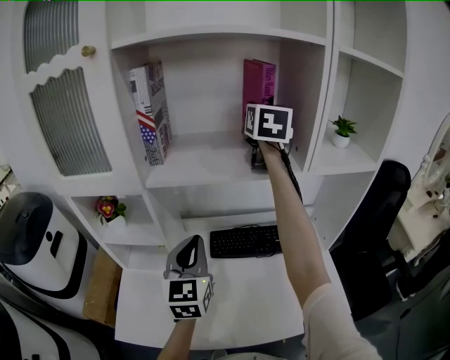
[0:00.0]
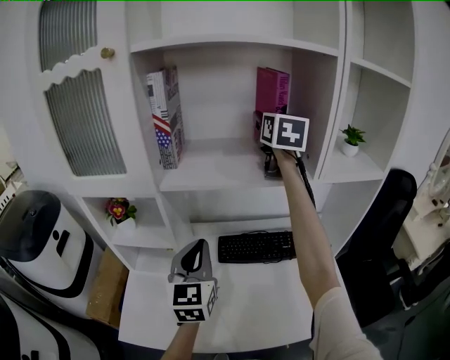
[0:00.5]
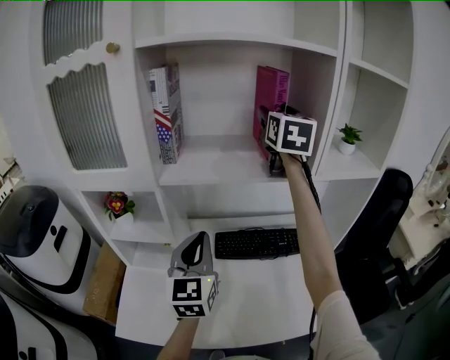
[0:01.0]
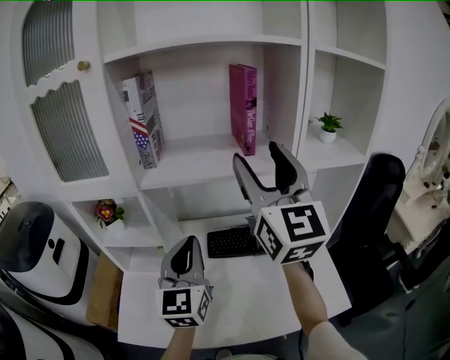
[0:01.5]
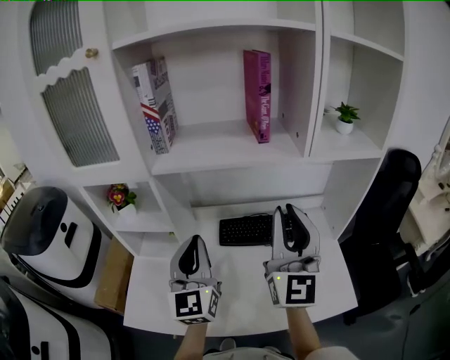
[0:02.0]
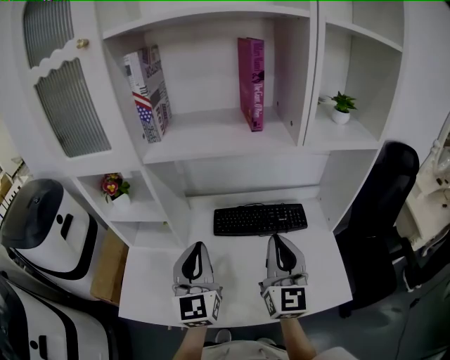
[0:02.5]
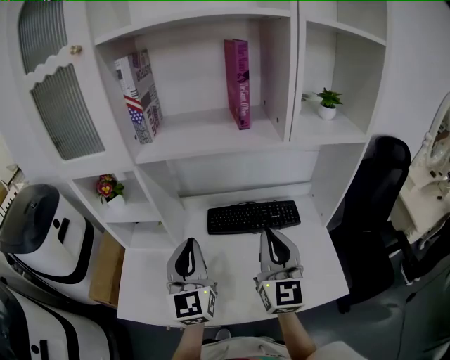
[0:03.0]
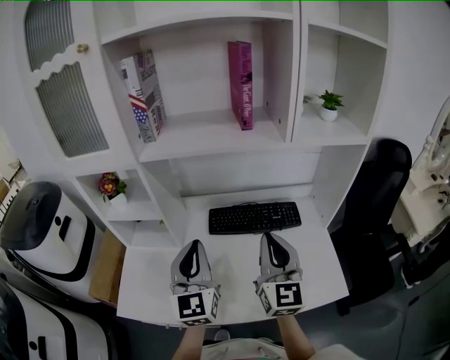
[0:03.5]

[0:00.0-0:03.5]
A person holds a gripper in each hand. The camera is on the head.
0:00.0 to 0:02.0: The right gripper moves backward and downward, roughly 35 cm, swivels about 30 degrees, and opens and closes again; the left gripper is displaced backward by approximately 5 cm.
0:02.0 to 0:03.5: The left gripper ends up some 5 cm from where it was. Meanwhile the right gripper goes roughly 10 cm downward.

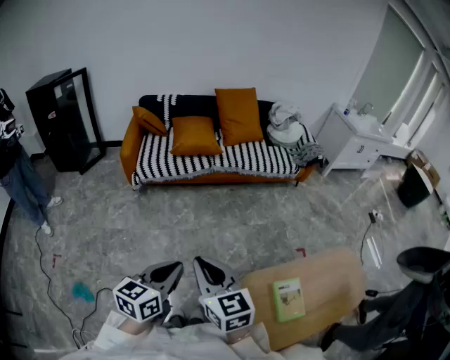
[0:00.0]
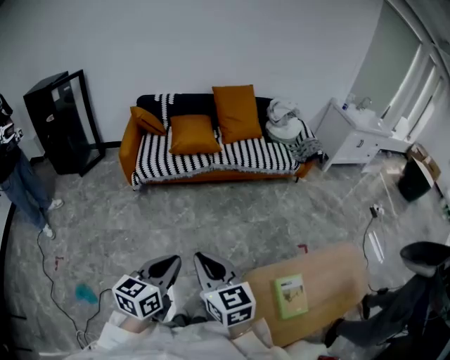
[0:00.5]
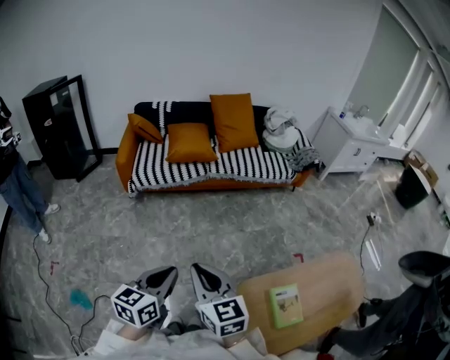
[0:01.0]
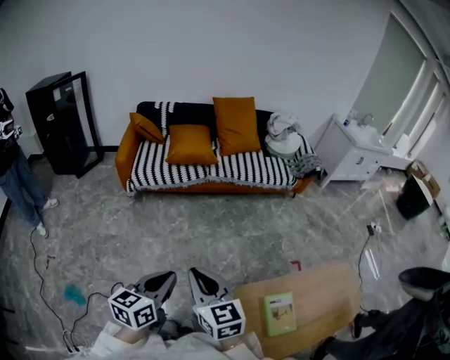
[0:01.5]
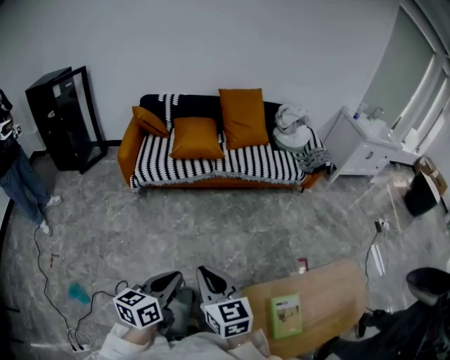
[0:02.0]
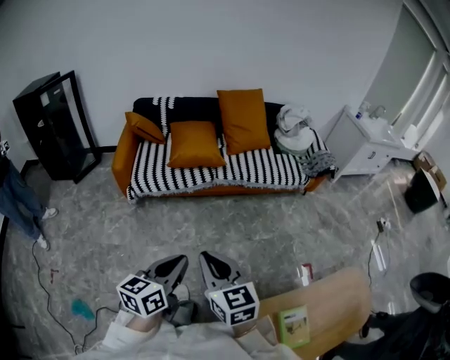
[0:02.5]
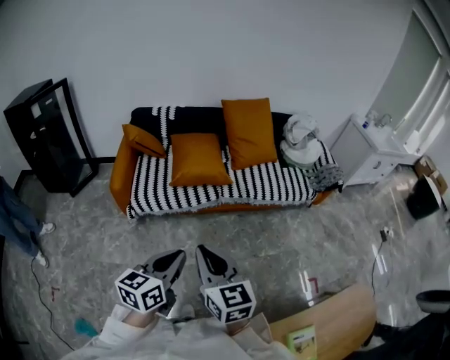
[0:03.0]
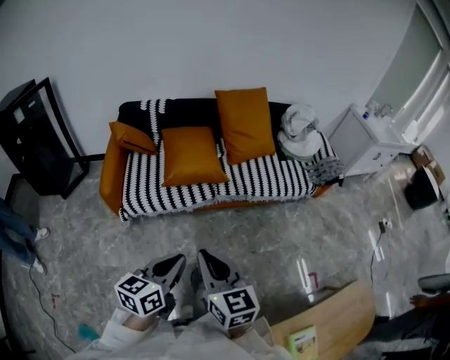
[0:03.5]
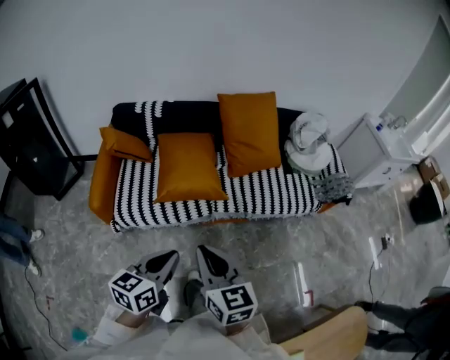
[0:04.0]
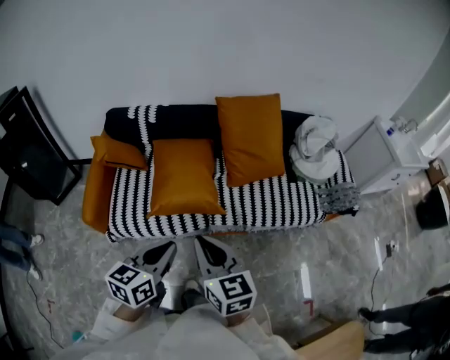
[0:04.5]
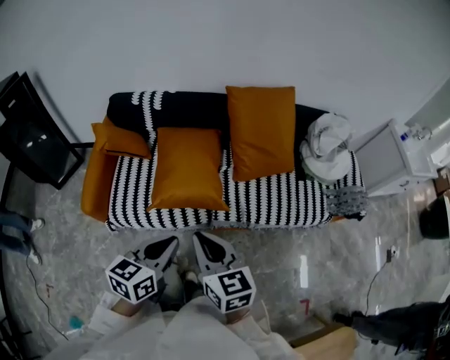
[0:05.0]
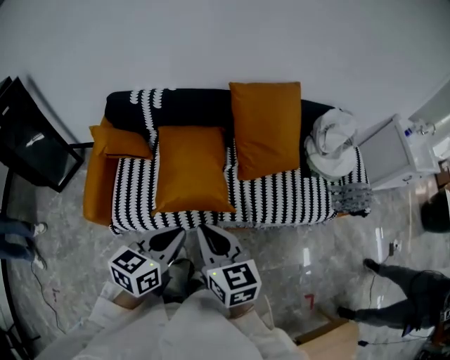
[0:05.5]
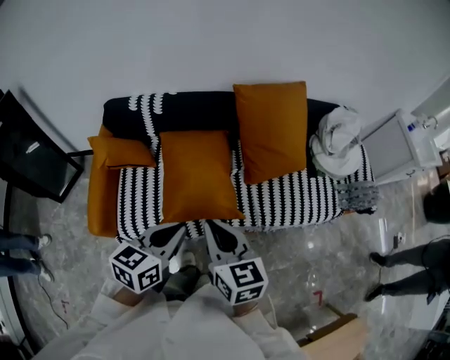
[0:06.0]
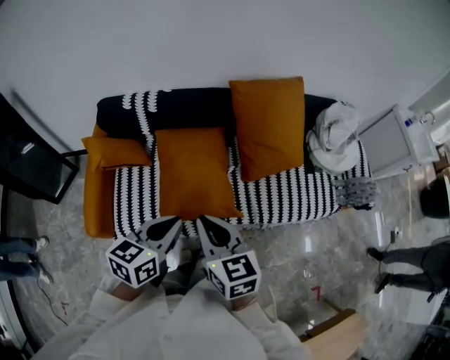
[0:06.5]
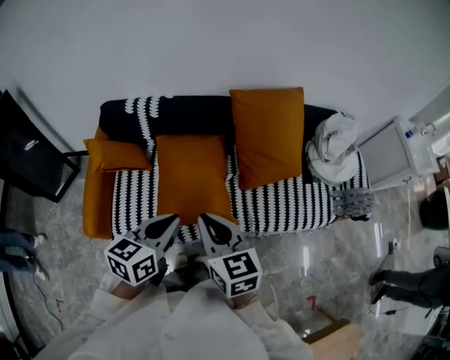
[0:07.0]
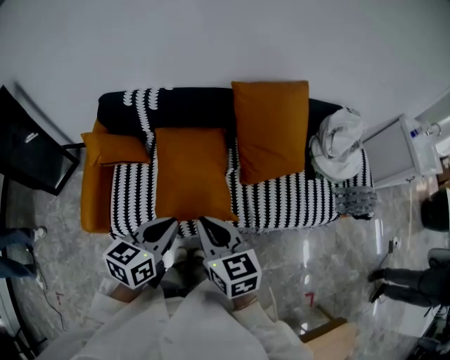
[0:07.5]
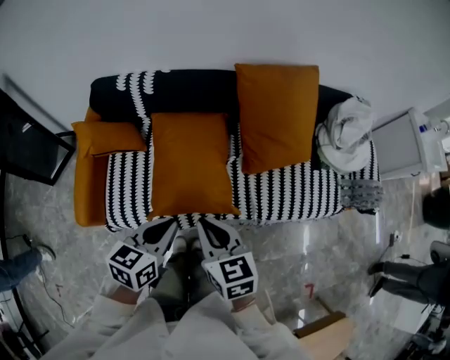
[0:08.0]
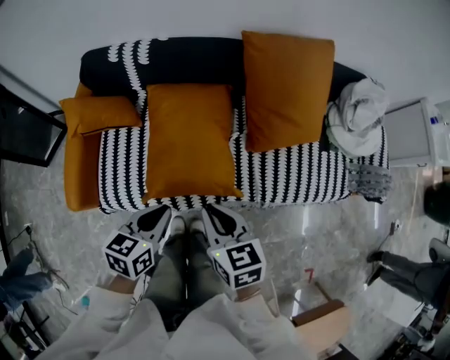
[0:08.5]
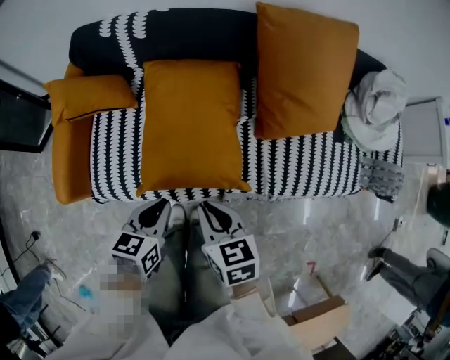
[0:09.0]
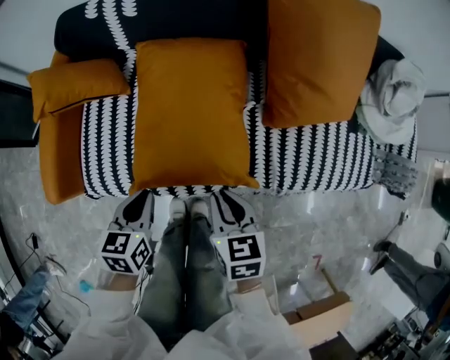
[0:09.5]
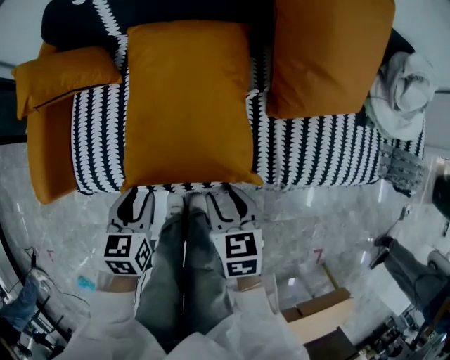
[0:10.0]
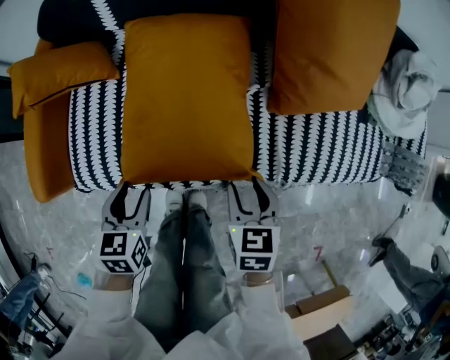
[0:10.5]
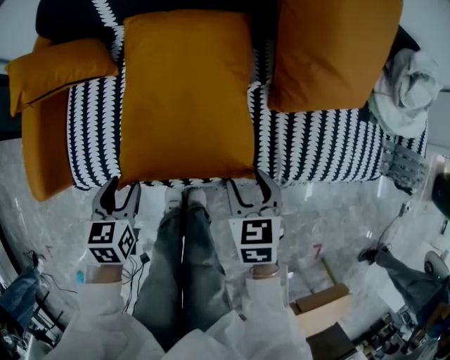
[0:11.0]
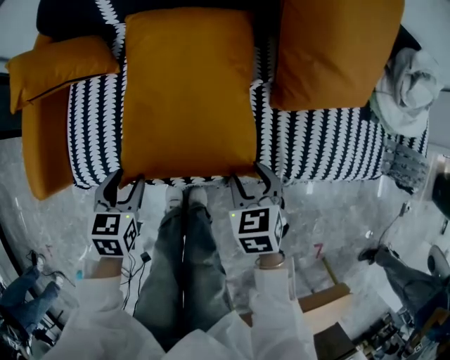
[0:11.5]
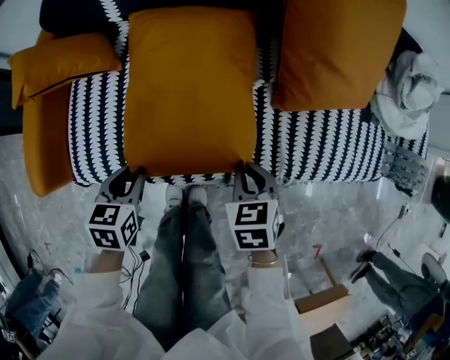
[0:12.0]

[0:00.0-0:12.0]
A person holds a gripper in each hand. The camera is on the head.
0:00.0 to 0:02.0: The left gripper is displaced forward by about 5 cm. The right gripper heads forward and downward, covering about 10 cm.
0:02.0 to 0:04.0: The two grippers travel together, forward, approximately 50 cm.
0:04.0 to 0:06.0: Both grippers move forward, about 30 cm.
0:06.0 to 0:08.0: Both grippers travel together downward, about 5 cm.
0:08.0 to 0:10.0: The grippers both shift downward by about 30 cm. The left gripper rotates about 30 degrees, and opens, while the right gripper changes its angle by approximately 20 degrees, and opens up.
0:10.0 to 0:12.0: The right gripper ends up roughly 5 cm from where it was, and closes up.

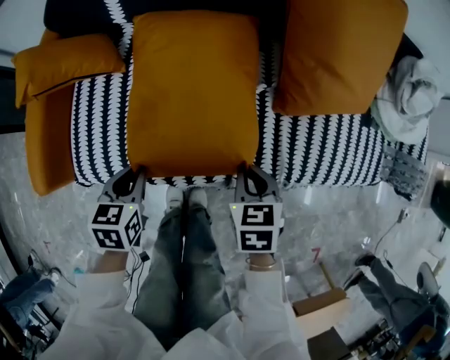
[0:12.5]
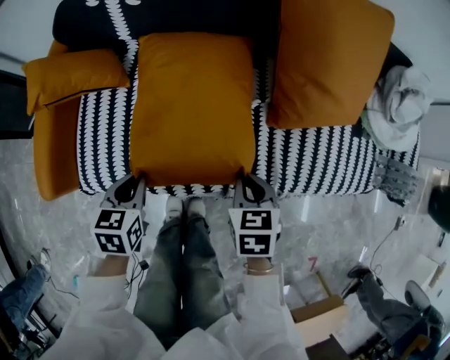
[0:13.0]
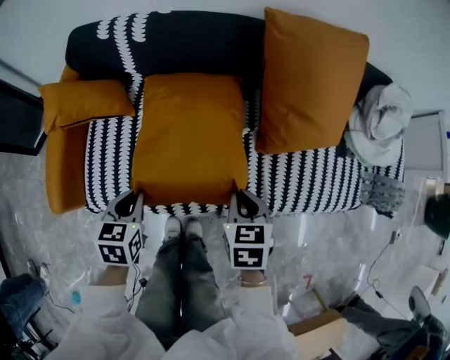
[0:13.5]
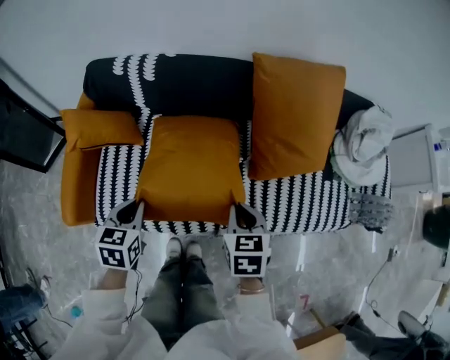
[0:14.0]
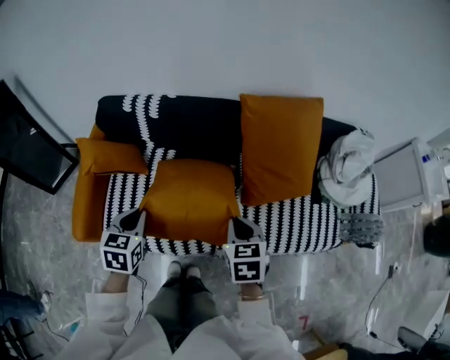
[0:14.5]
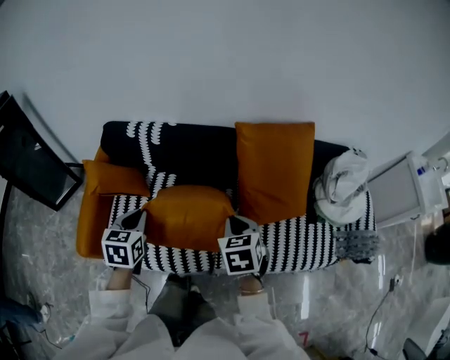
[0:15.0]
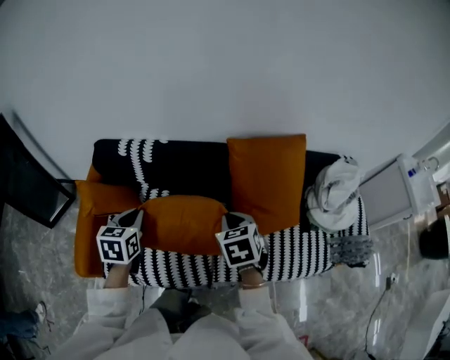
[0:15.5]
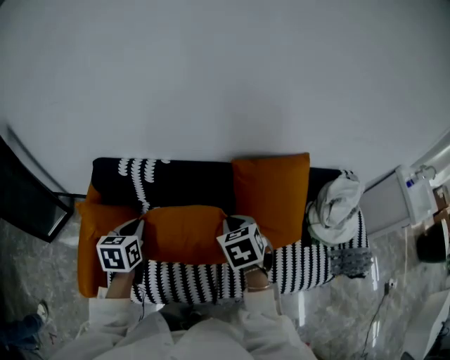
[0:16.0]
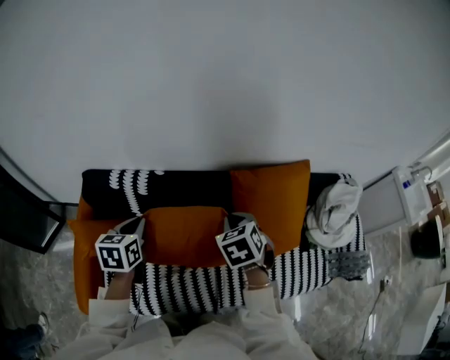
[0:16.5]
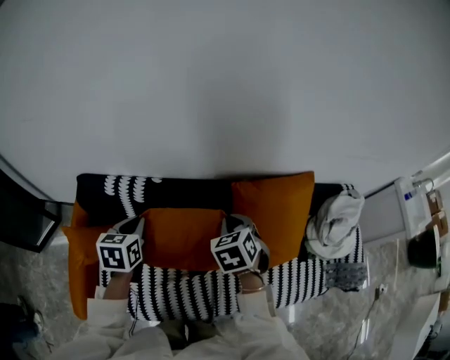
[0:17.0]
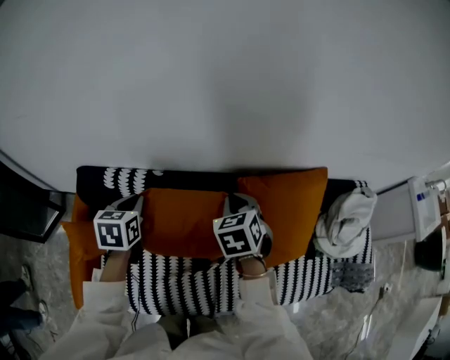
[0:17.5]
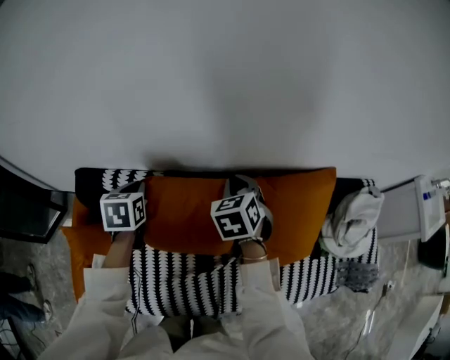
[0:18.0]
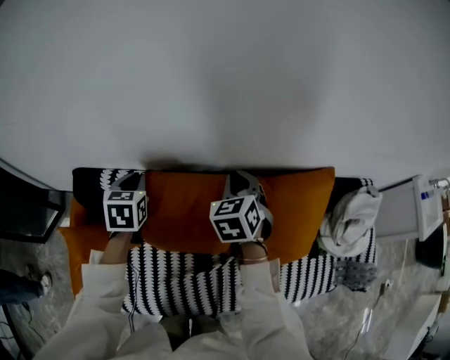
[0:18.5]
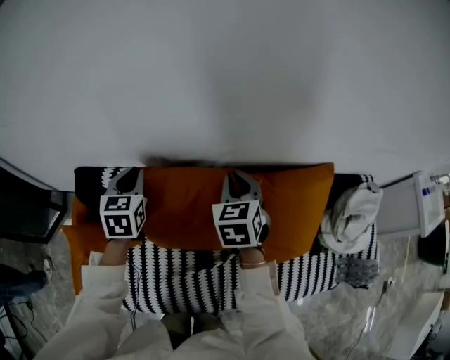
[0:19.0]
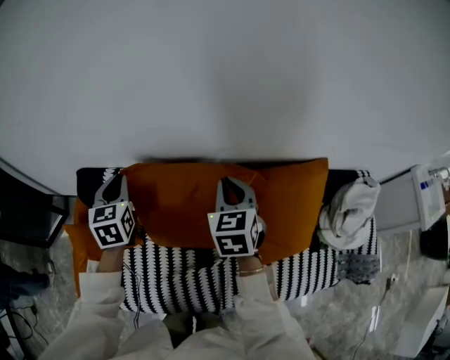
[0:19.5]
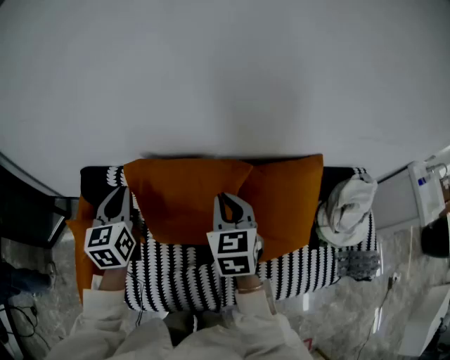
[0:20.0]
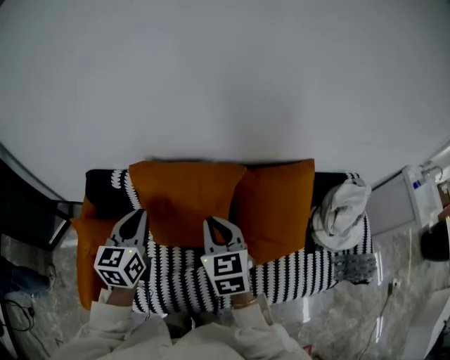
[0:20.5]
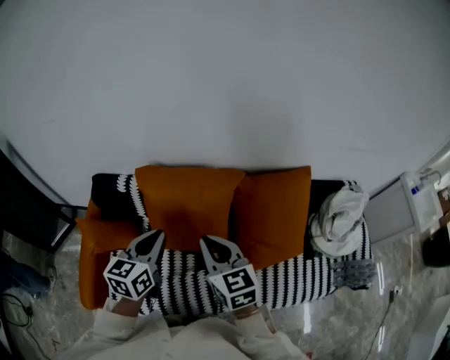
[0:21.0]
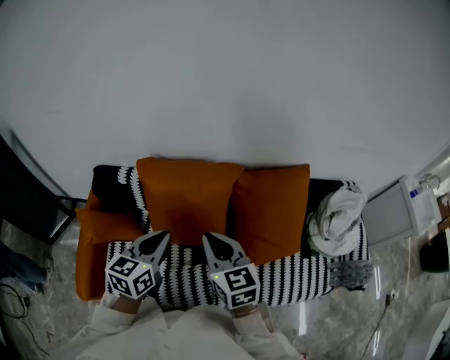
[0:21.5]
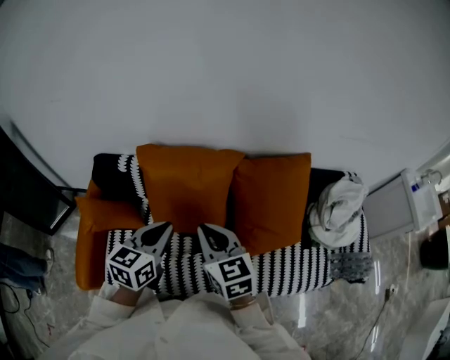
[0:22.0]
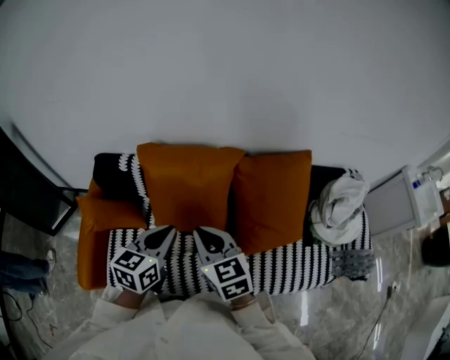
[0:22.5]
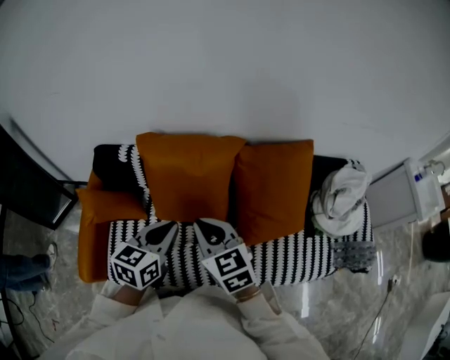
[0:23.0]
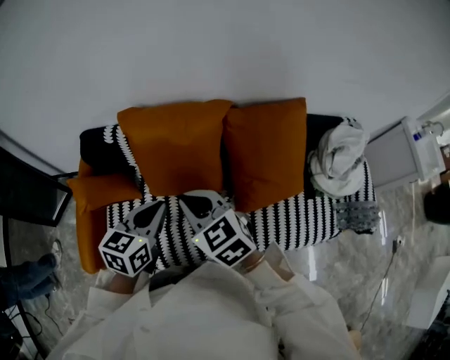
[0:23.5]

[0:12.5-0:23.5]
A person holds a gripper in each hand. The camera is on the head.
0:12.5 to 0:14.5: The grippers both shift upward by some 25 cm.
0:14.5 to 0:16.0: Both grippers travel together forward and upward, about 20 cm.
0:16.0 to 0:18.0: The grippers both shift forward by roughly 30 cm.
0:18.0 to 0:20.0: The right gripper moves backward and upward, roughly 15 cm, and turns by roughly 20 degrees, while the left gripper goes approximately 15 cm upward and backward, and swivels roughly 30 degrees.
0:20.0 to 0:21.5: The left gripper moves backward and to the right, some 20 cm, and rotates approximately 30 degrees; the right gripper goes some 15 cm backward, and rotates some 20 degrees.
0:21.5 to 0:23.5: The right gripper ends up approximately 5 cm from where it was, and rotates roughly 20 degrees. The left gripper moves approximately 5 cm.
